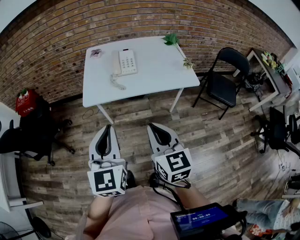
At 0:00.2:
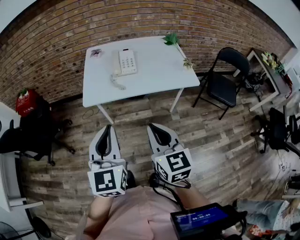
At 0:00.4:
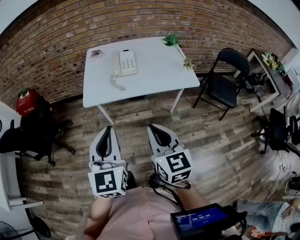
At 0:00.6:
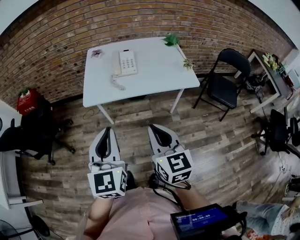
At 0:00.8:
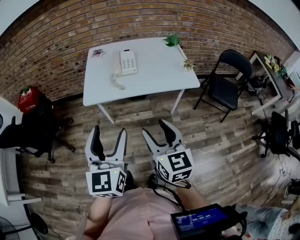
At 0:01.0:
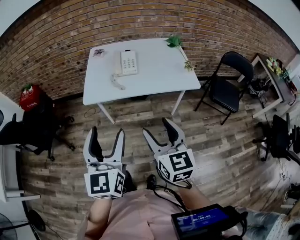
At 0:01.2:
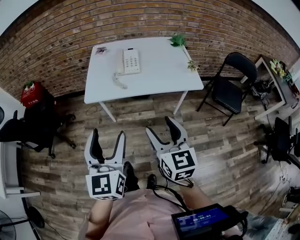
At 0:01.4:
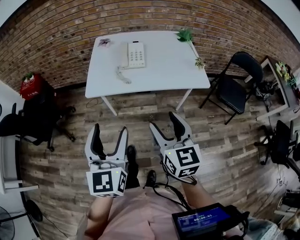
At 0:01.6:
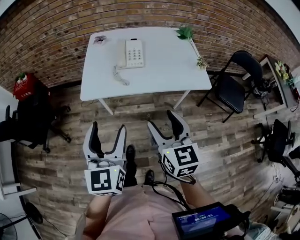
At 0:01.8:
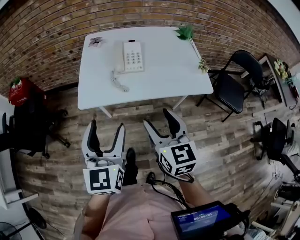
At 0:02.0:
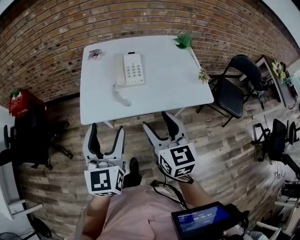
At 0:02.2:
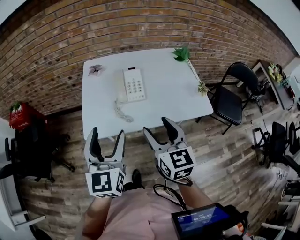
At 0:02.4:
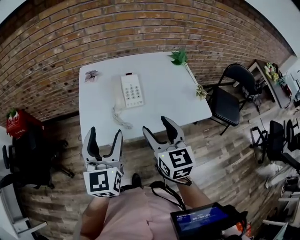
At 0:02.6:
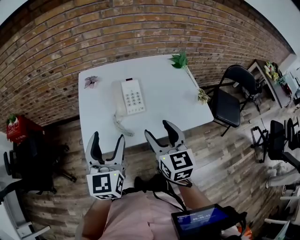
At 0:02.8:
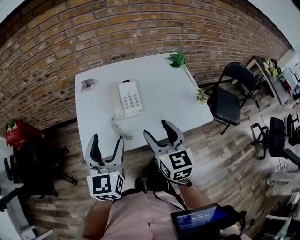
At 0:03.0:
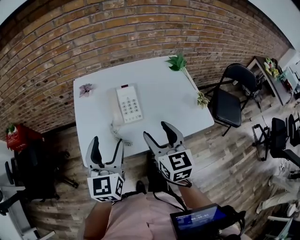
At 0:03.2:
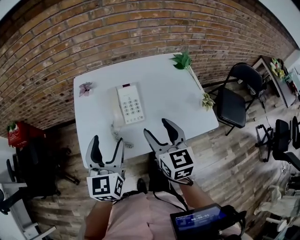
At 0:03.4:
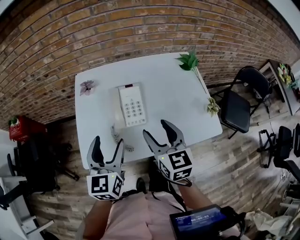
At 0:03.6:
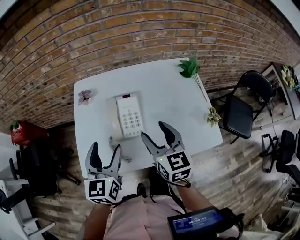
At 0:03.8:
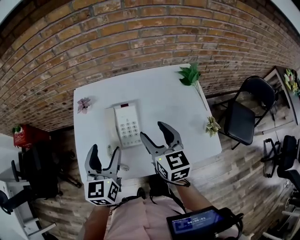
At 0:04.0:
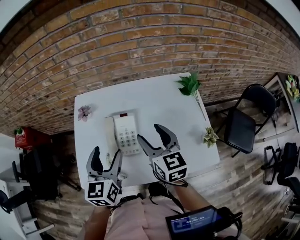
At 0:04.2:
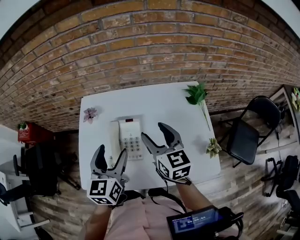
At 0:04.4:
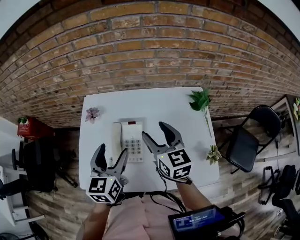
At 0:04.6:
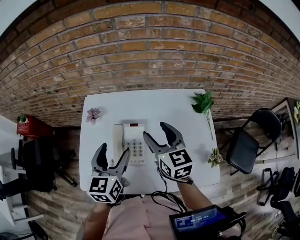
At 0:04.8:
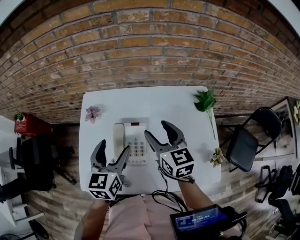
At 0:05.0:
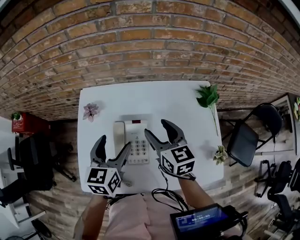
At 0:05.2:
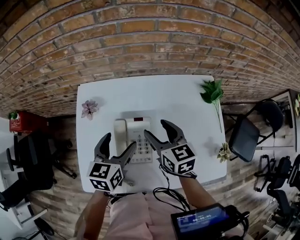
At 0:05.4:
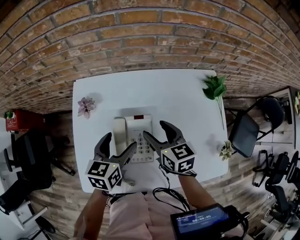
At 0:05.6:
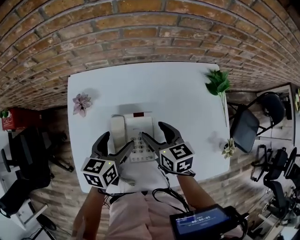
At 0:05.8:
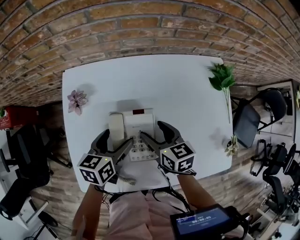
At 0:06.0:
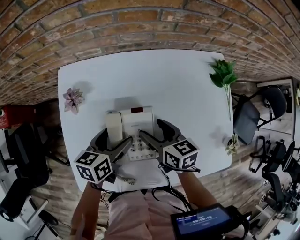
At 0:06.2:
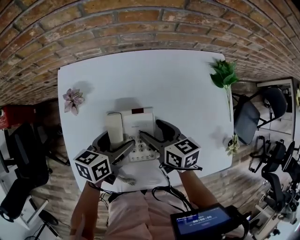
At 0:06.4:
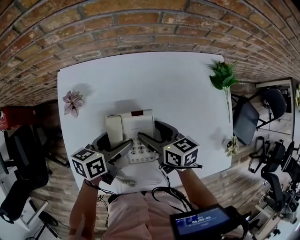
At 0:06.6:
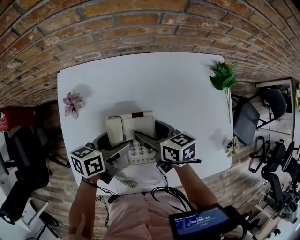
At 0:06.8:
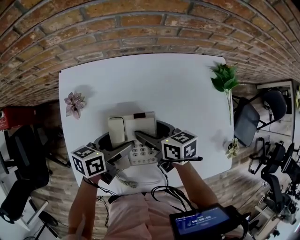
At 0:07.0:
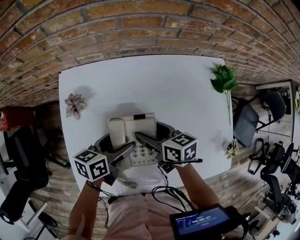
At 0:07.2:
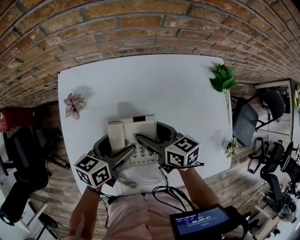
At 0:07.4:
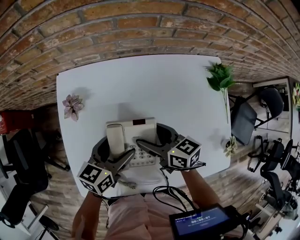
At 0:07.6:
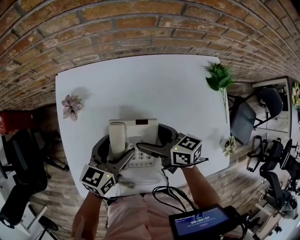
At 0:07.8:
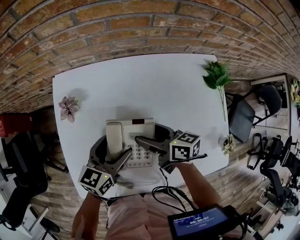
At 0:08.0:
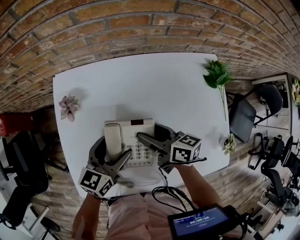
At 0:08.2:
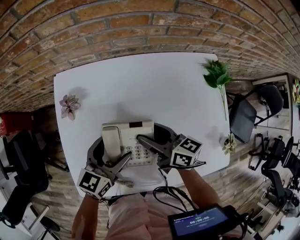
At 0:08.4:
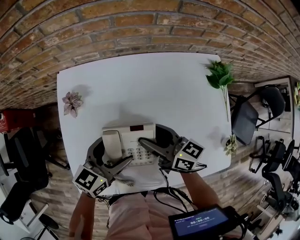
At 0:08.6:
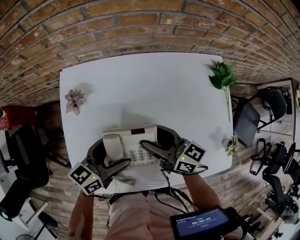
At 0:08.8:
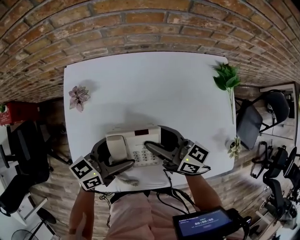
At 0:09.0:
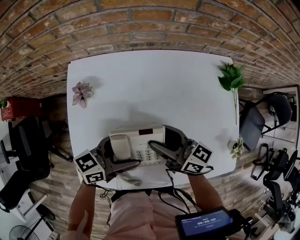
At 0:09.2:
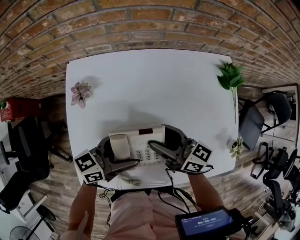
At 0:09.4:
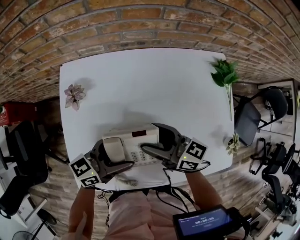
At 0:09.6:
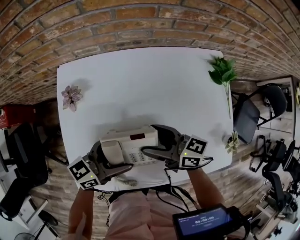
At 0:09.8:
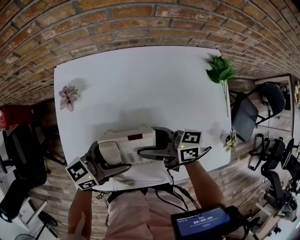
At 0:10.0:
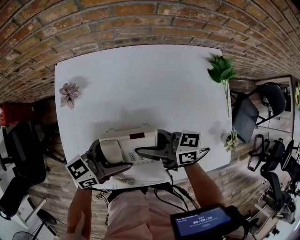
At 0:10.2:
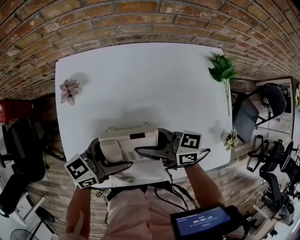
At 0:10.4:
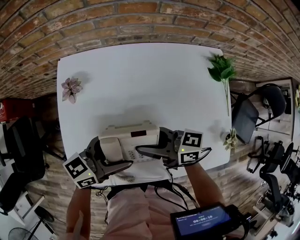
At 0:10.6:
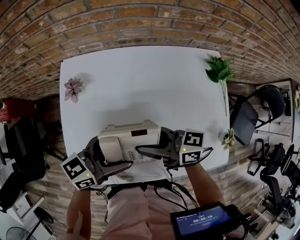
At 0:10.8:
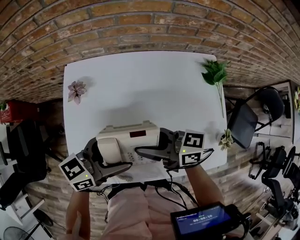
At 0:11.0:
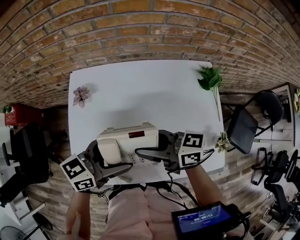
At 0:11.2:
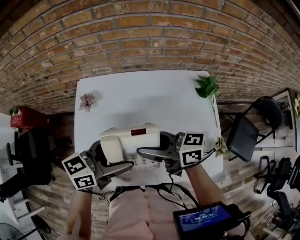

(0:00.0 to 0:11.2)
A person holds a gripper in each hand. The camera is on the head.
0:00.0 - 0:01.6: The grippers both shift forward by some 5 cm. The right gripper opens up. Meanwhile the left gripper opens.
0:01.6 - 0:03.2: Both grippers travel together forward, about 30 cm.
0:03.2 - 0:04.8: The grippers both shift forward by about 20 cm.
0:04.8 - 0:06.4: Both grippers move downward, some 15 cm. The right gripper rotates some 30 degrees. The left gripper changes its angle by approximately 50 degrees.
0:06.4 - 0:08.0: The left gripper changes its angle by about 30 degrees.
0:08.0 - 0:09.6: The left gripper ends up about 5 cm from where it was, and swivels some 30 degrees; the right gripper moves about 5 cm.
0:09.6 - 0:11.2: Both grippers move upward, about 15 cm. The right gripper closes.

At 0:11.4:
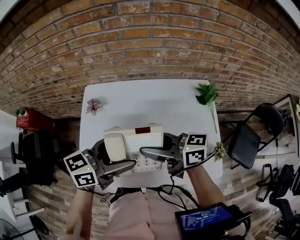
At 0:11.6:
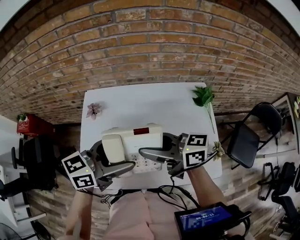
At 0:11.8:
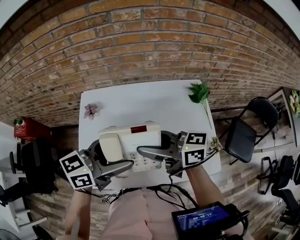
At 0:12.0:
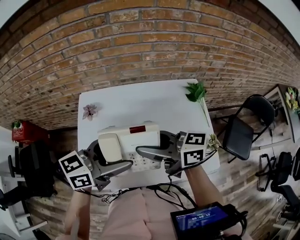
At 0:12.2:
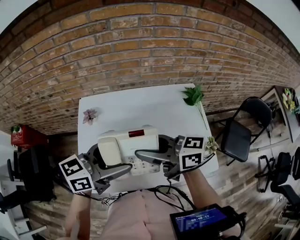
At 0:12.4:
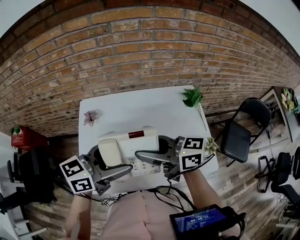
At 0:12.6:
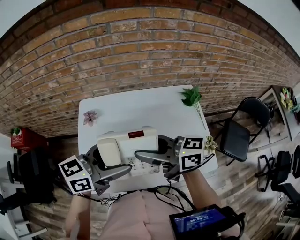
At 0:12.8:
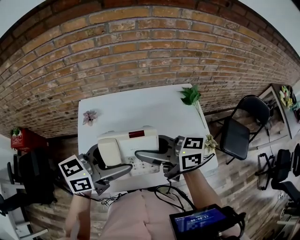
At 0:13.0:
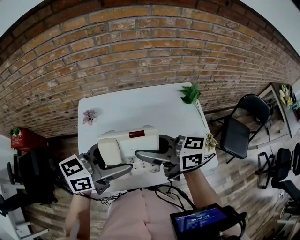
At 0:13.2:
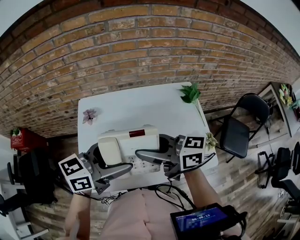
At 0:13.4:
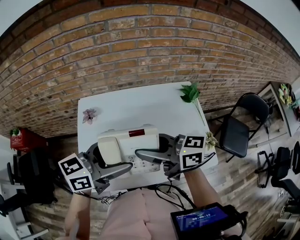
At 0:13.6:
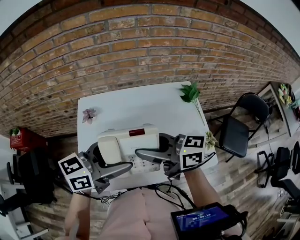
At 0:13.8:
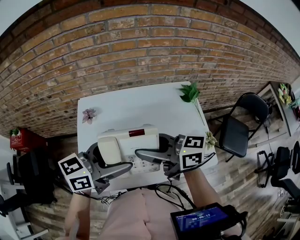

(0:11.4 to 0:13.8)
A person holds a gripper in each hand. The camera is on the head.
0:11.4 - 0:12.6: The right gripper goes approximately 5 cm upward.
0:12.6 - 0:13.8: The grippers make only small movements.

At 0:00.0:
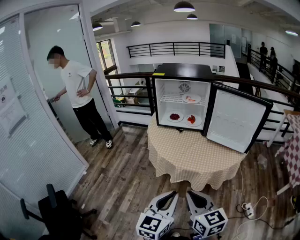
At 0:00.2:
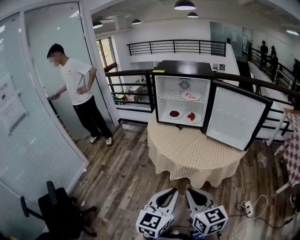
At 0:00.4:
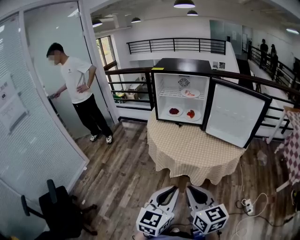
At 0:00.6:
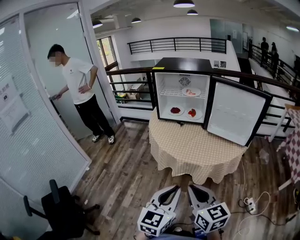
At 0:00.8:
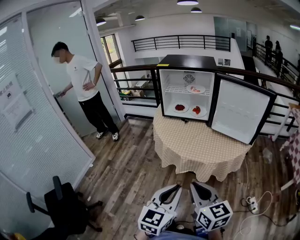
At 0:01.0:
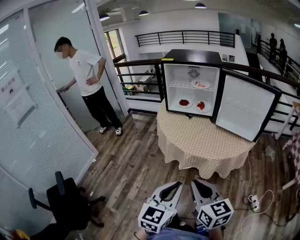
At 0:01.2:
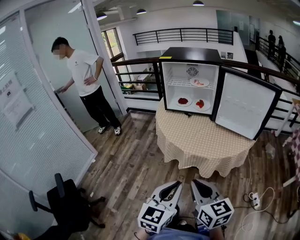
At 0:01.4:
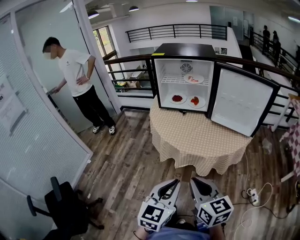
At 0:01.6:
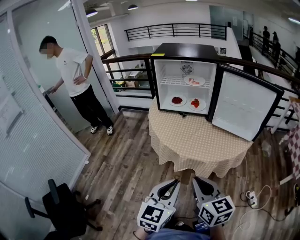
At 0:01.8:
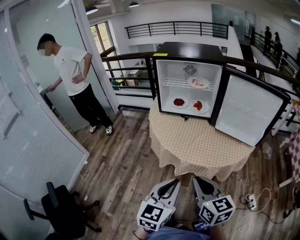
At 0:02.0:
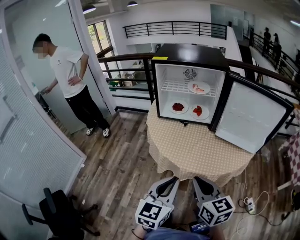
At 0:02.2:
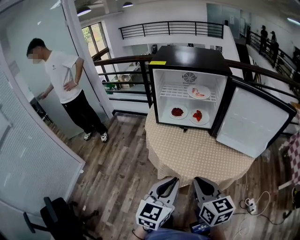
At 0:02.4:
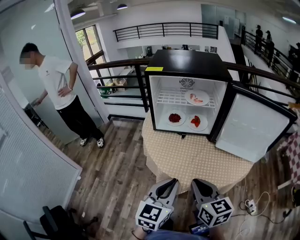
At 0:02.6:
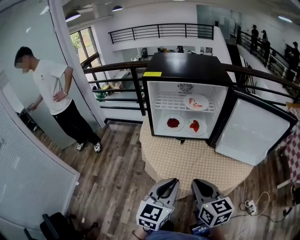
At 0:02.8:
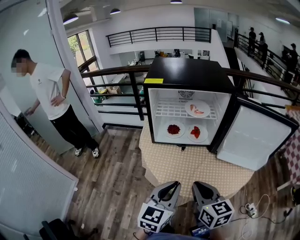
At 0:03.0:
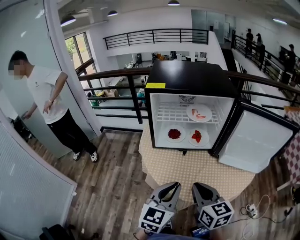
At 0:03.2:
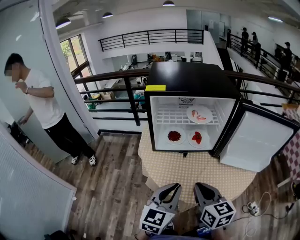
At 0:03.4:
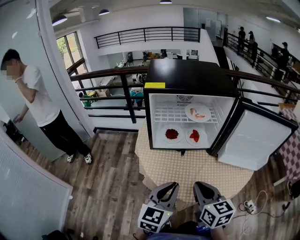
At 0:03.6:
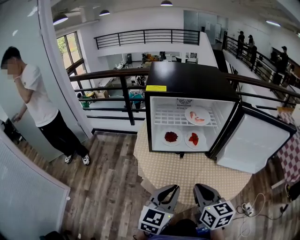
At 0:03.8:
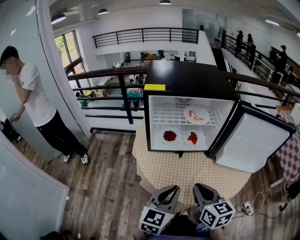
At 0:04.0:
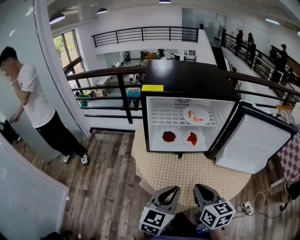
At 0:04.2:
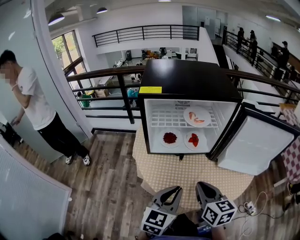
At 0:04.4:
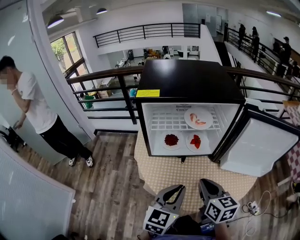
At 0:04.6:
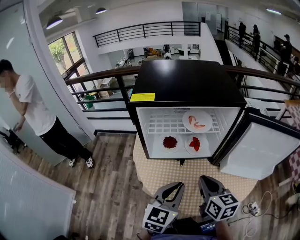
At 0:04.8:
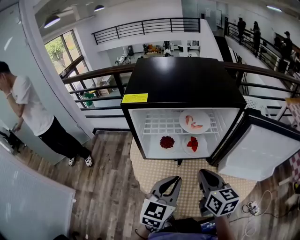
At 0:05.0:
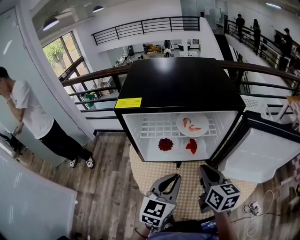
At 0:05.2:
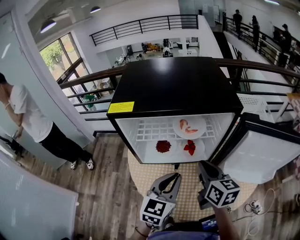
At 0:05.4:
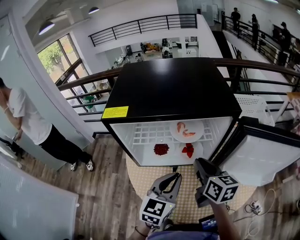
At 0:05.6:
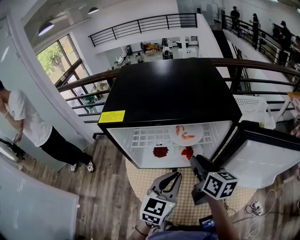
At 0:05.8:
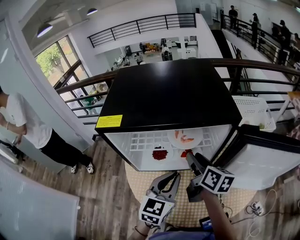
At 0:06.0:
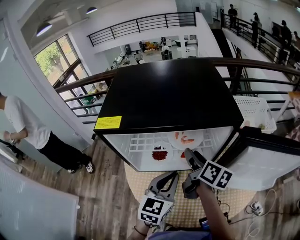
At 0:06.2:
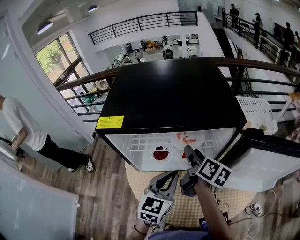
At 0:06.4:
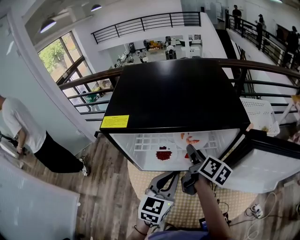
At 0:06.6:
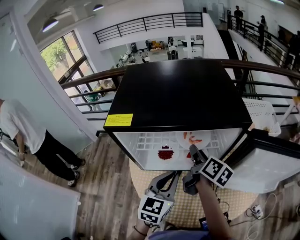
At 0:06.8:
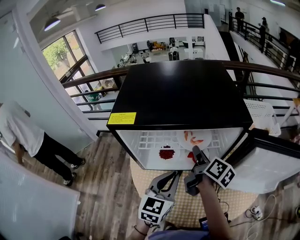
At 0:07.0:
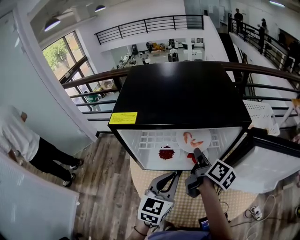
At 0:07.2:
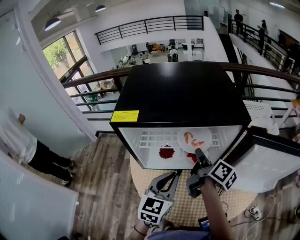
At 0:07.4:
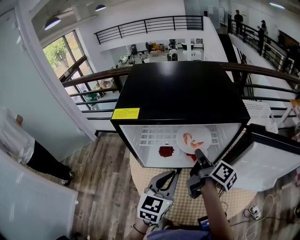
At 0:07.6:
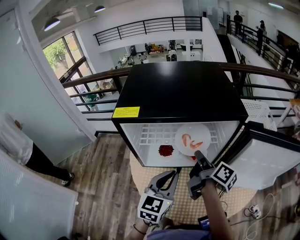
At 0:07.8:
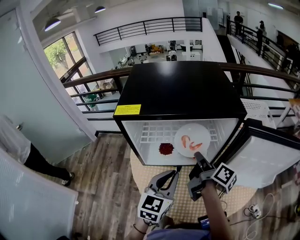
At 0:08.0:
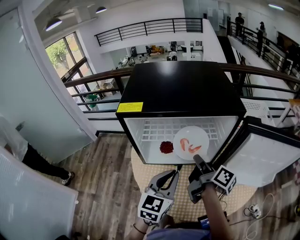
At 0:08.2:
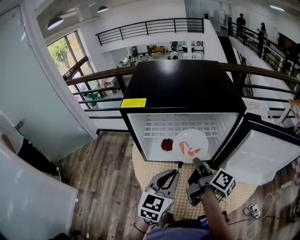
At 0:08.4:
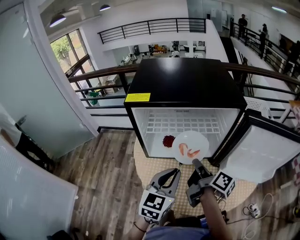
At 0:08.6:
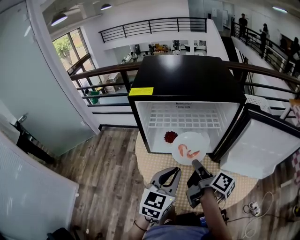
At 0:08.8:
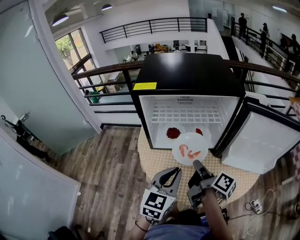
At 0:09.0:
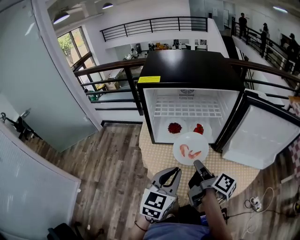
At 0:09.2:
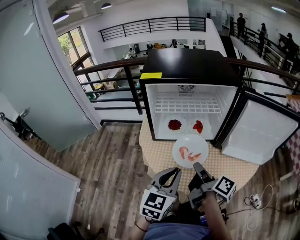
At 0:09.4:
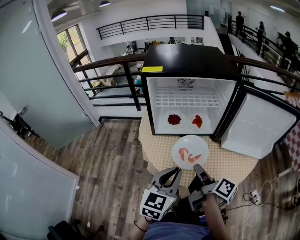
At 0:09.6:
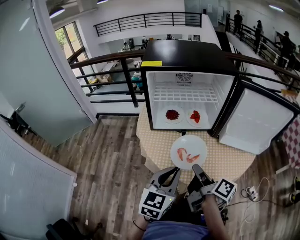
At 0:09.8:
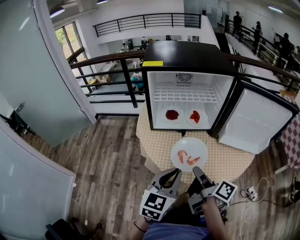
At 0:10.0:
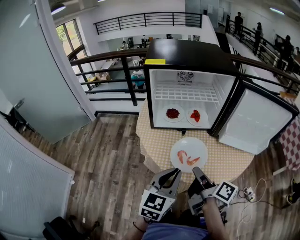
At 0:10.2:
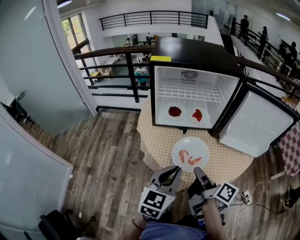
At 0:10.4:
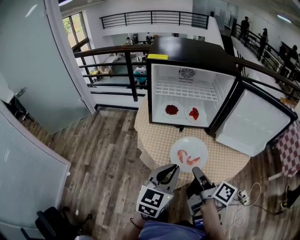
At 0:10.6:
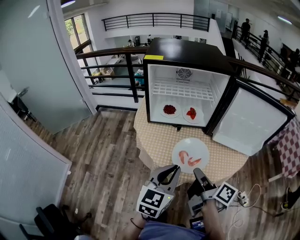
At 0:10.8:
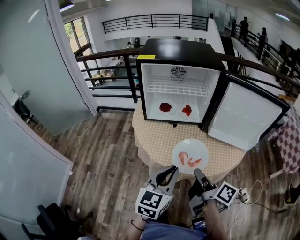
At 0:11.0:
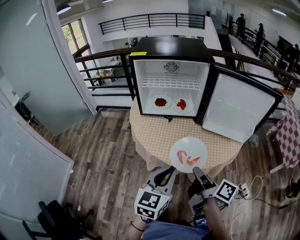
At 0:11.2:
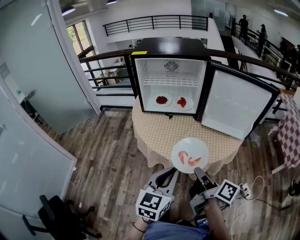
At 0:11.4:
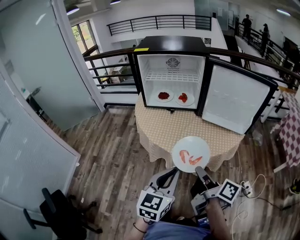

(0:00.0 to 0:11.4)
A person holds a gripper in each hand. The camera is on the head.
0:00.0 - 0:01.4: The grippers stay close to where they were, moving slightly.
0:01.4 - 0:02.8: Both grippers move forward, approximately 30 cm.
0:02.8 - 0:04.2: Both grippers travel together forward, approximately 5 cm.
0:04.2 - 0:05.6: The two grippers go approximately 20 cm forward.
0:05.6 - 0:07.2: The right gripper rotates about 40 degrees, and opens, then closes once more.
0:07.2 - 0:08.6: The right gripper is displaced backward by some 15 cm, while the left gripper is displaced backward by approximately 10 cm.
0:08.6 - 0:10.0: The grippers both shift backward by about 15 cm.
0:10.0 - 0:11.4: Both grippers travel together backward and to the right, approximately 25 cm.
